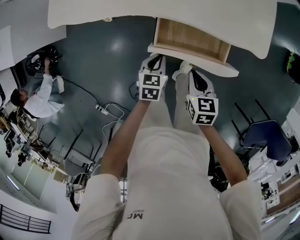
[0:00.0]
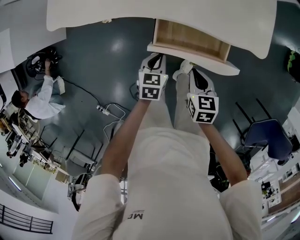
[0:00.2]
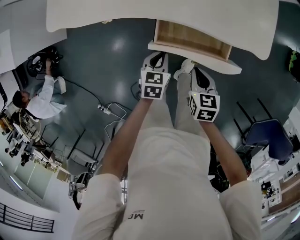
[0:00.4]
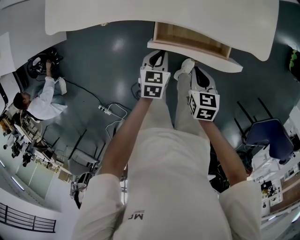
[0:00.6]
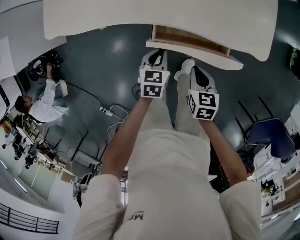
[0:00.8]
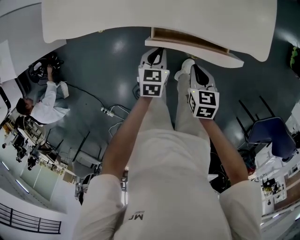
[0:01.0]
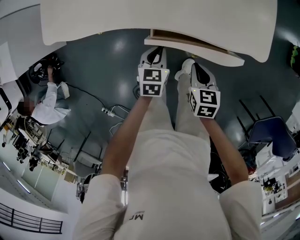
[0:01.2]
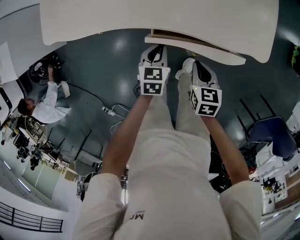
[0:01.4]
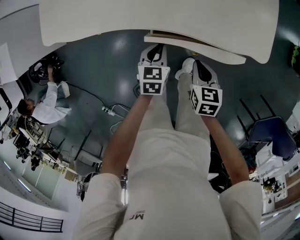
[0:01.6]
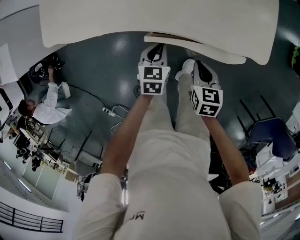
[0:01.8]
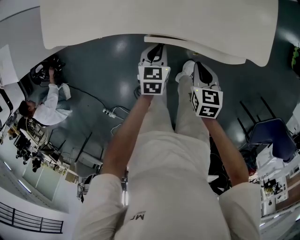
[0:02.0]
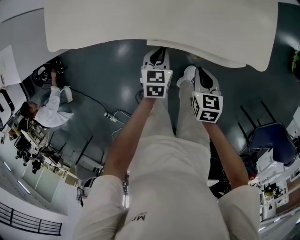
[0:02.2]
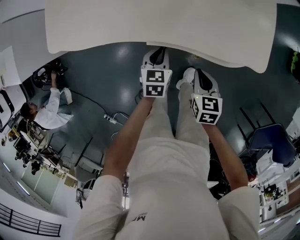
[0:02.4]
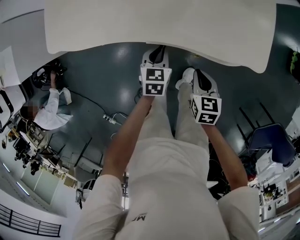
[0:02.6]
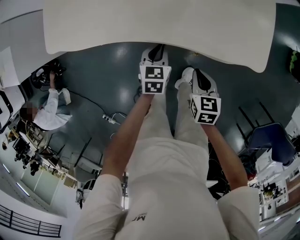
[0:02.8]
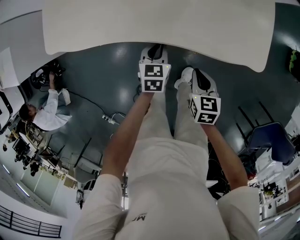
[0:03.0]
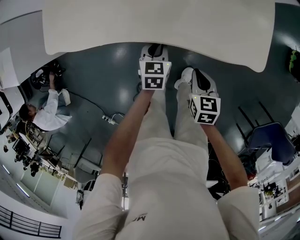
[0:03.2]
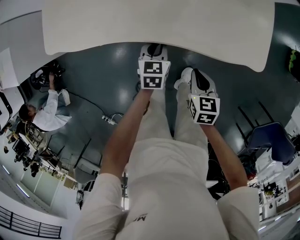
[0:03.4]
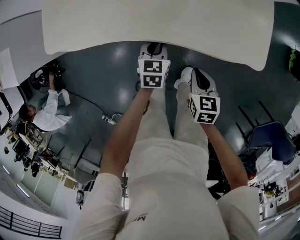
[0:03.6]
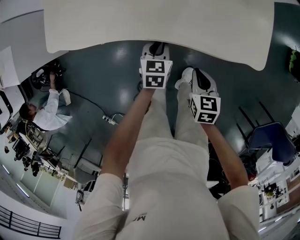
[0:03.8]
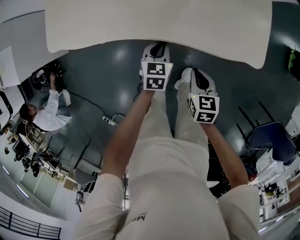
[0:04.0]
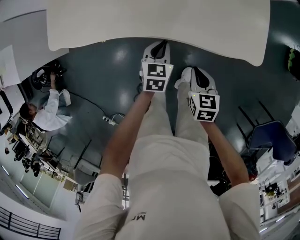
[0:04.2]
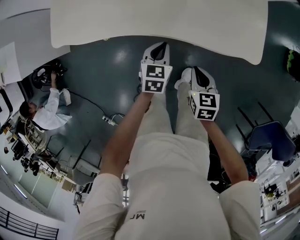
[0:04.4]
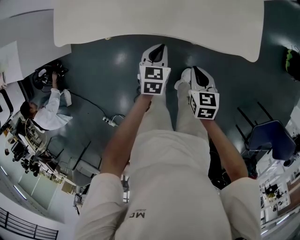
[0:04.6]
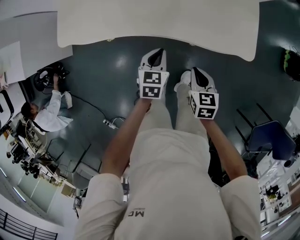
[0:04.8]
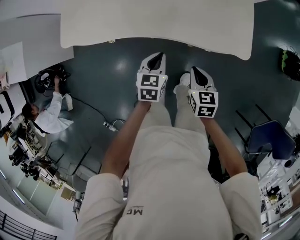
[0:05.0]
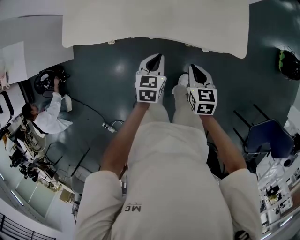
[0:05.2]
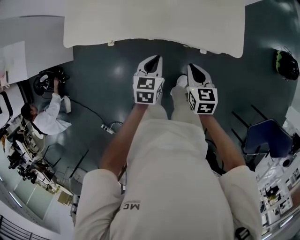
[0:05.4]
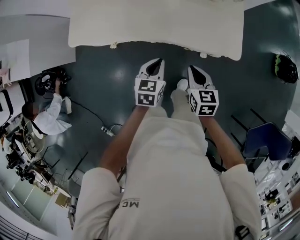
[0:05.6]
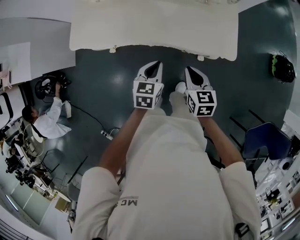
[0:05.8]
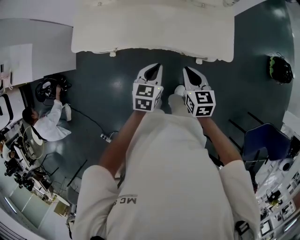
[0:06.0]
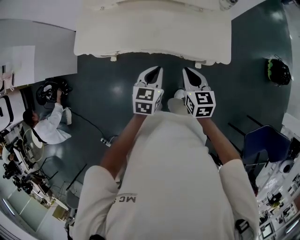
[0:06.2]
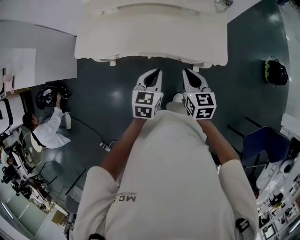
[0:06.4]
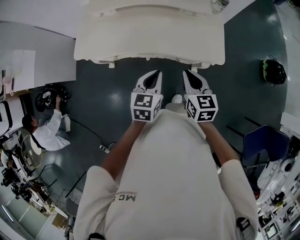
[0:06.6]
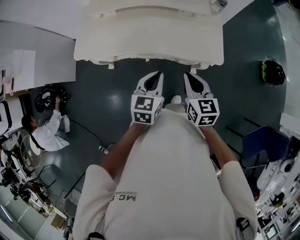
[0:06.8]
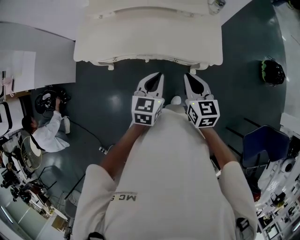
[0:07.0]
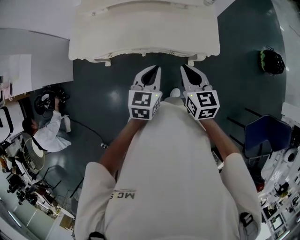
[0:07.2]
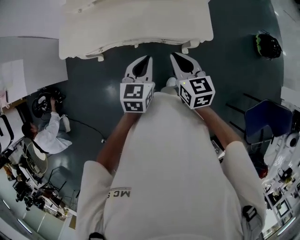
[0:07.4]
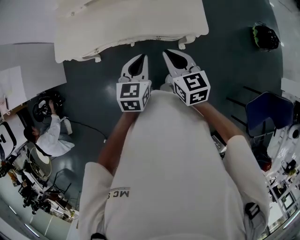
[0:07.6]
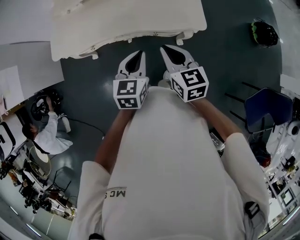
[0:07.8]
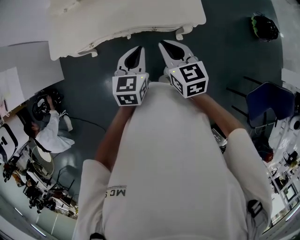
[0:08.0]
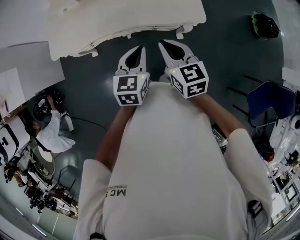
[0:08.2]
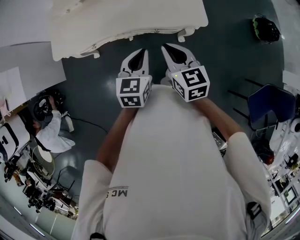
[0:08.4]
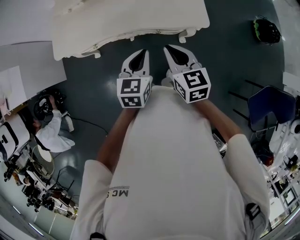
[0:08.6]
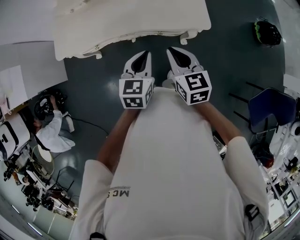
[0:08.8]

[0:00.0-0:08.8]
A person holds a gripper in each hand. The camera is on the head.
0:00.0 to 0:01.4: Both grippers travel together forward, approximately 10 cm.
0:01.4 to 0:03.0: The left gripper goes approximately 5 cm forward.
0:03.0 to 0:04.4: The grippers make only small movements.
0:04.4 to 0:05.8: The left gripper moves upward and backward, some 15 cm. Meanwhile the right gripper shifts about 15 cm upward.
0:05.8 to 0:07.4: The two grippers go some 10 cm upward.
0:07.4 to 0:08.8: There are only small adjustments of the grippers.

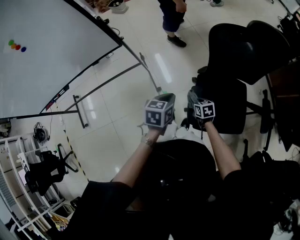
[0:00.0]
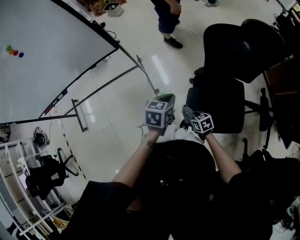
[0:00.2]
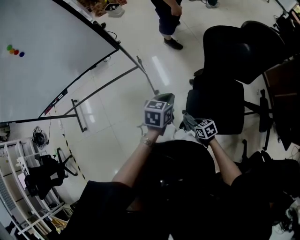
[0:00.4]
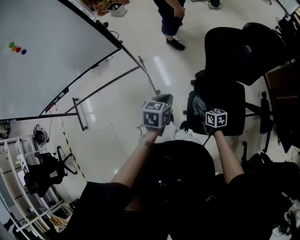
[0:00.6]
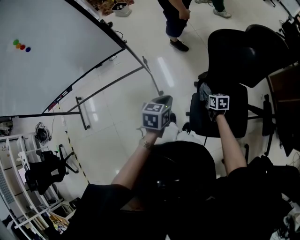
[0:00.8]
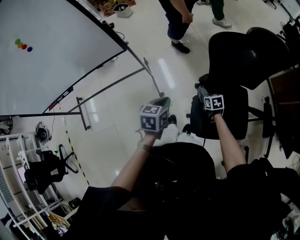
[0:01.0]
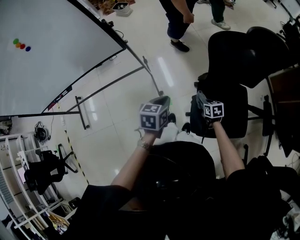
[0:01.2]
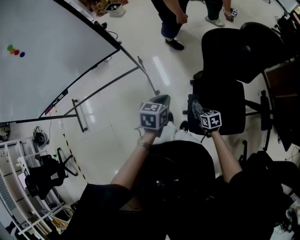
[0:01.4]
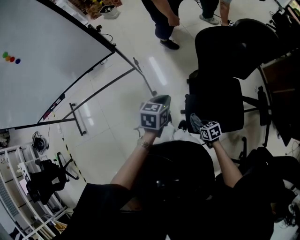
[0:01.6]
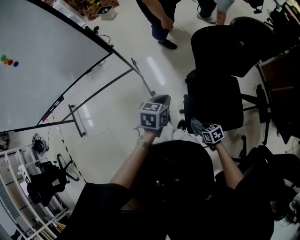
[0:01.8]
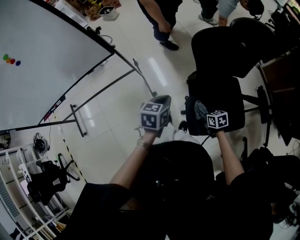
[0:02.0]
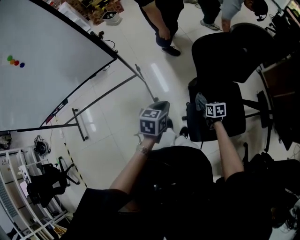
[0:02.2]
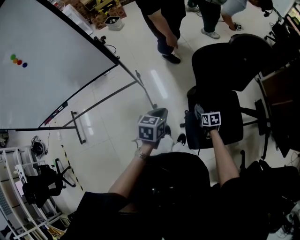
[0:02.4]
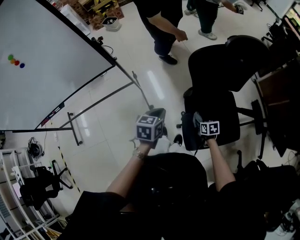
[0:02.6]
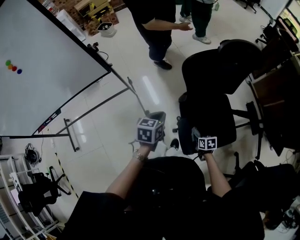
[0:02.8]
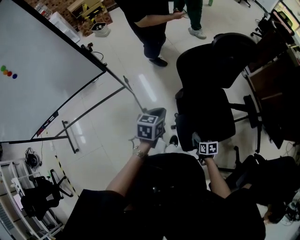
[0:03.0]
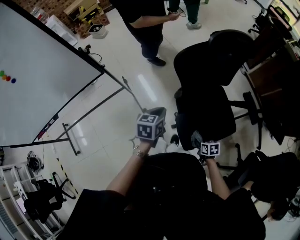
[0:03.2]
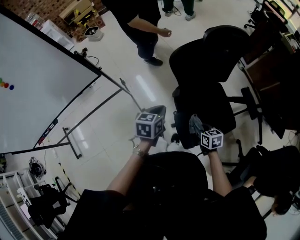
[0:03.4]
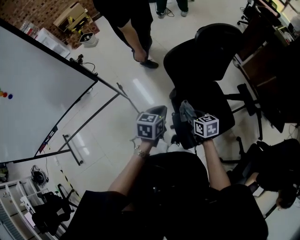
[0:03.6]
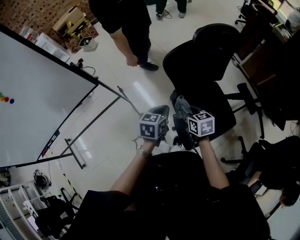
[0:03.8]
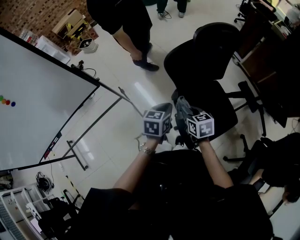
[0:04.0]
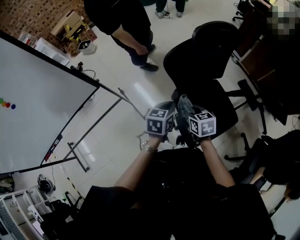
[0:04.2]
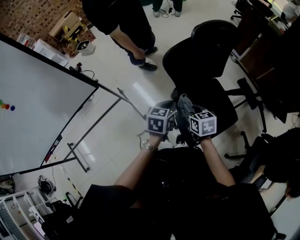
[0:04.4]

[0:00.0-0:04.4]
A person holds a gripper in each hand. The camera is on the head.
0:00.0 to 0:01.4: The right gripper goes forward and backward, some 15 cm each way, reversing 2 times.
0:01.4 to 0:03.0: The left gripper shifts some 5 cm to the right, while the right gripper swings forward and backward, about 20 cm each way, with 2 reversals, and turns by roughly 20 degrees.
0:03.0 to 0:04.4: The left gripper is displaced to the right by approximately 10 cm; the right gripper shifts some 30 cm upward and forward, and rotates some 30 degrees.

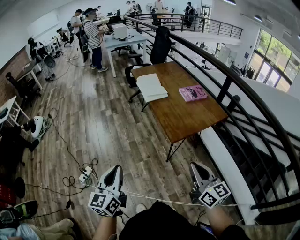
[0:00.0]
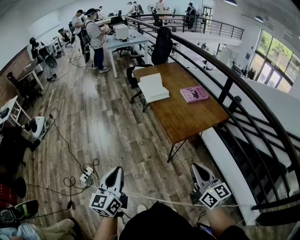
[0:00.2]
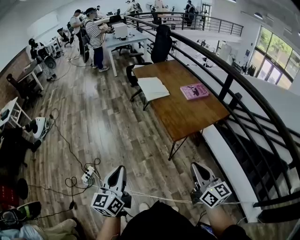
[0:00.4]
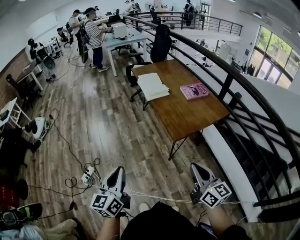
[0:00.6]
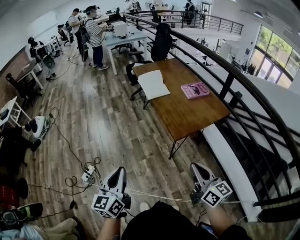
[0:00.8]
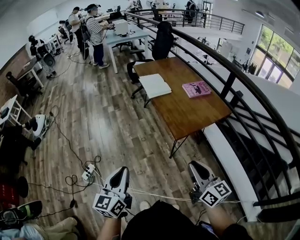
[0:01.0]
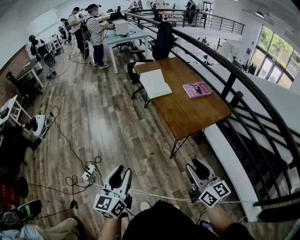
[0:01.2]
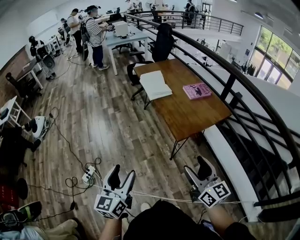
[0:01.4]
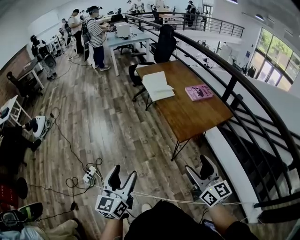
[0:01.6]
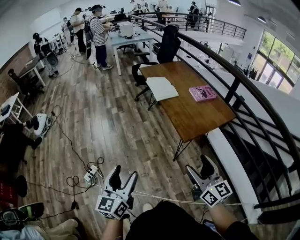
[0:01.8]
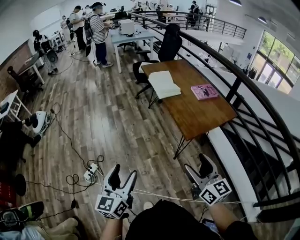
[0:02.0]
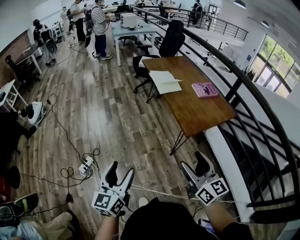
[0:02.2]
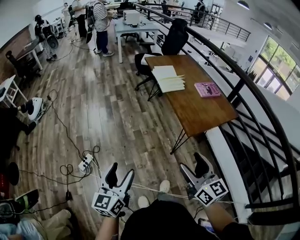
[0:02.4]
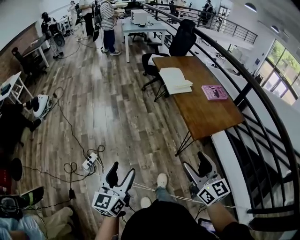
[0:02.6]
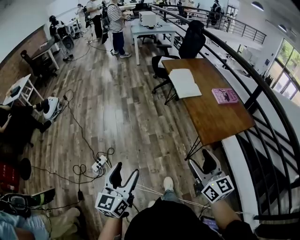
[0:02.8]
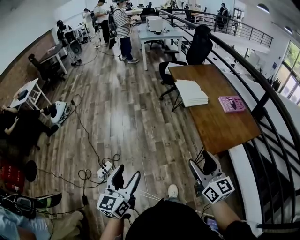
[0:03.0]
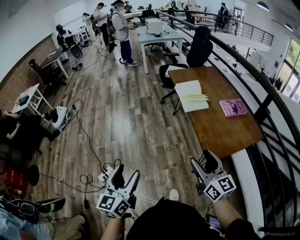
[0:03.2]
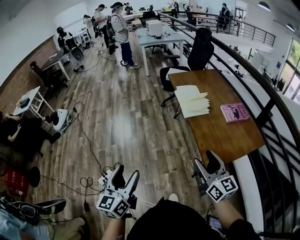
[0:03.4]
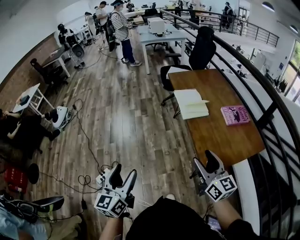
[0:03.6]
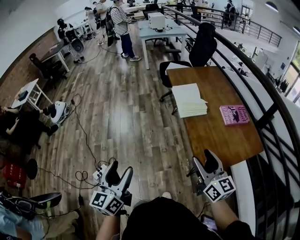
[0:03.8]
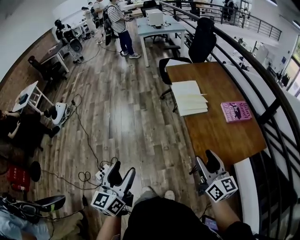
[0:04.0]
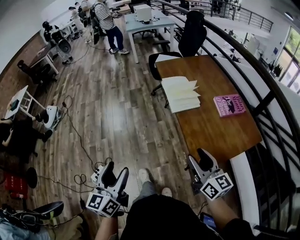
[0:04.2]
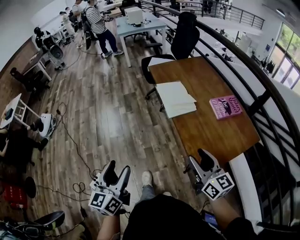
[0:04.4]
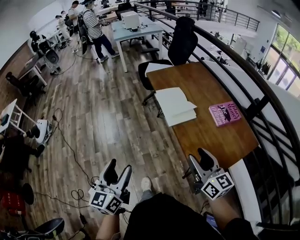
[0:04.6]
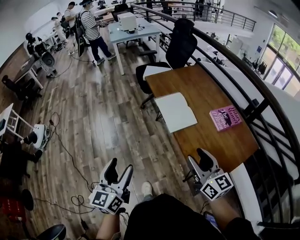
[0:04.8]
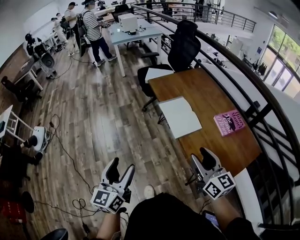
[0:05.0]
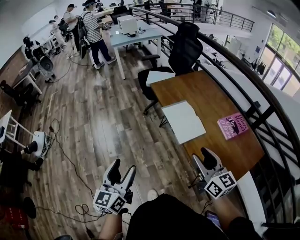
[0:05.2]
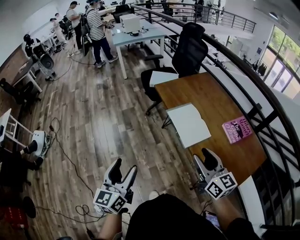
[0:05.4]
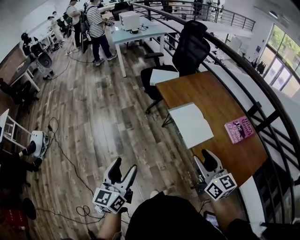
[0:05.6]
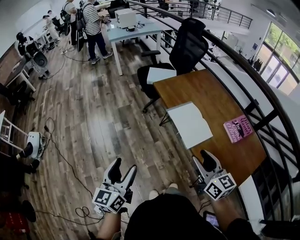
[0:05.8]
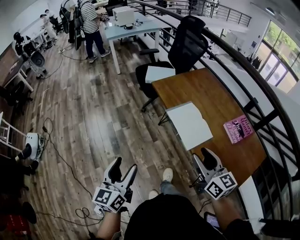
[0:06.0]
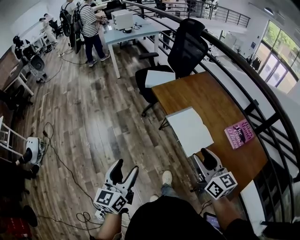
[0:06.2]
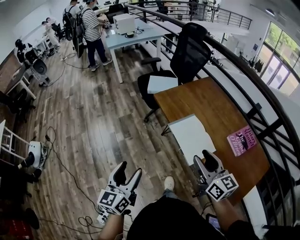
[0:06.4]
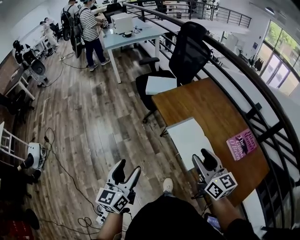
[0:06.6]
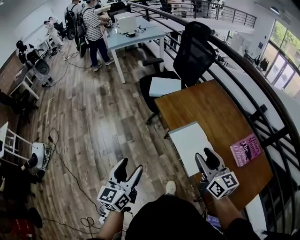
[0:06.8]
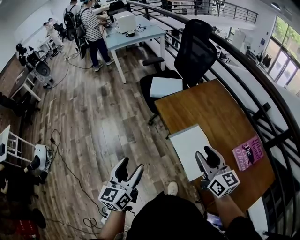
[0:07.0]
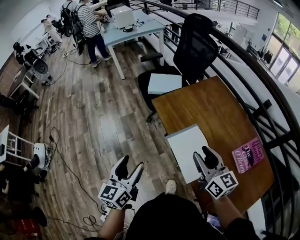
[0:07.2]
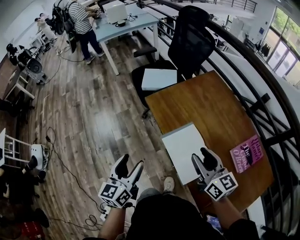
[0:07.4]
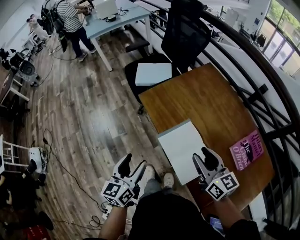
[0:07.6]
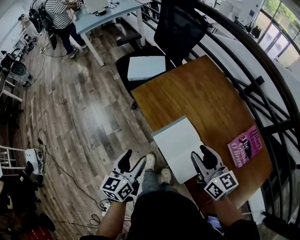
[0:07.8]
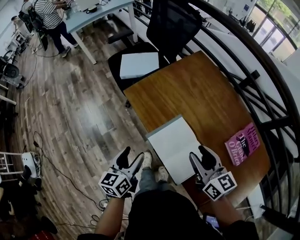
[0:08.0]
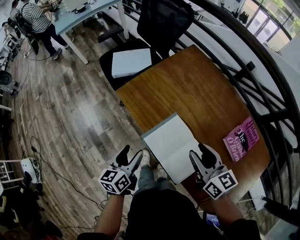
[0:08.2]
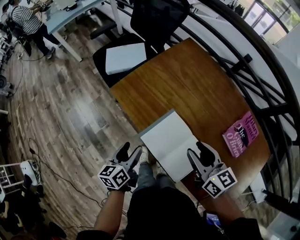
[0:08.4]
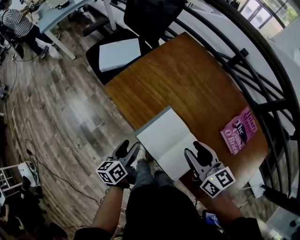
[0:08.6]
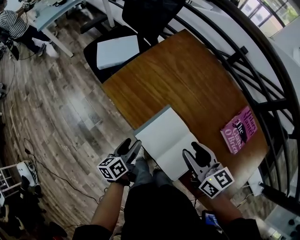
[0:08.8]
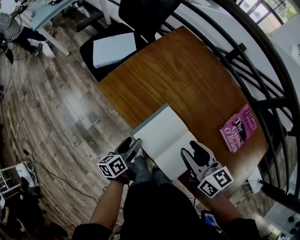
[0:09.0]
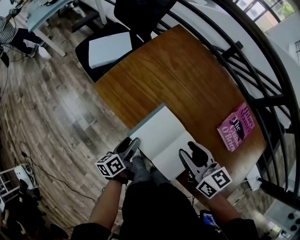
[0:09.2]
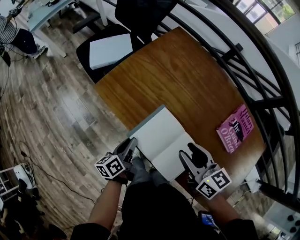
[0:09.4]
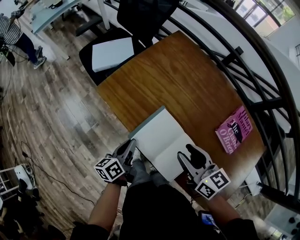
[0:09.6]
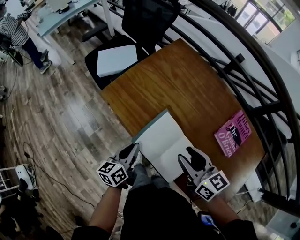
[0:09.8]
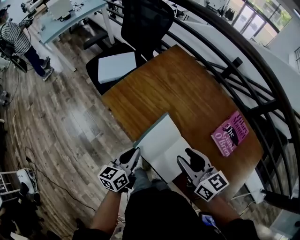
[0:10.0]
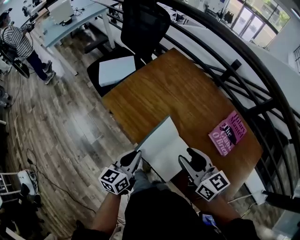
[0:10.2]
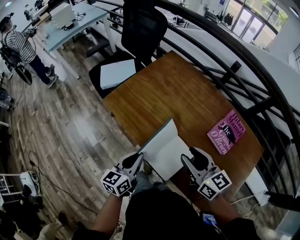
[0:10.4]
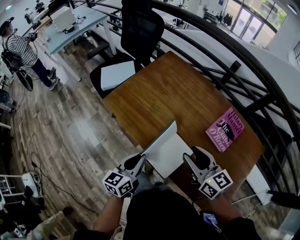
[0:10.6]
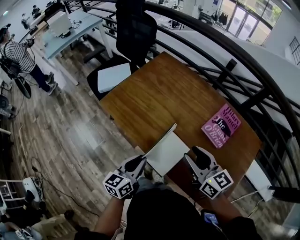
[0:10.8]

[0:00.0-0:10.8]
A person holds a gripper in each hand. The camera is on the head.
0:00.0 to 0:01.6: The left gripper opens. The right gripper opens.
0:01.6 to 0:03.0: The right gripper goes about 15 cm forward and to the left, while the left gripper heads to the left and forward, covering roughly 10 cm.
0:03.0 to 0:04.6: Both grippers travel together forward and to the right, some 25 cm.
0:04.6 to 0:06.2: The left gripper goes some 25 cm forward. Meanwhile the right gripper goes roughly 25 cm forward and to the left.
0:06.2 to 0:07.8: The two grippers go approximately 25 cm forward and to the right.
0:07.8 to 0:09.2: The right gripper shifts some 5 cm downward, while the left gripper shifts about 20 cm downward and forward, and swivels about 30 degrees.
0:09.2 to 0:10.8: The right gripper moves upward, to the right and backward, about 15 cm. Meanwhile the left gripper shifts approximately 20 cm upward, backward and to the right, changes its angle by about 40 degrees, and closes its fingers.
